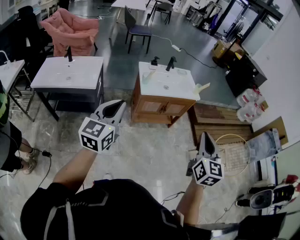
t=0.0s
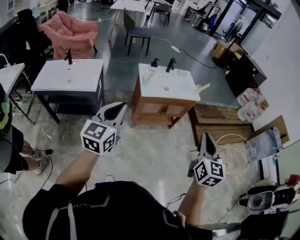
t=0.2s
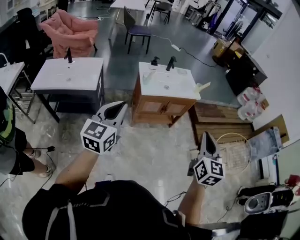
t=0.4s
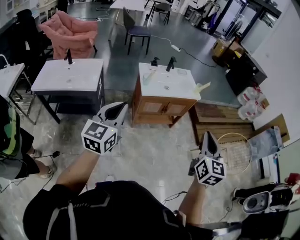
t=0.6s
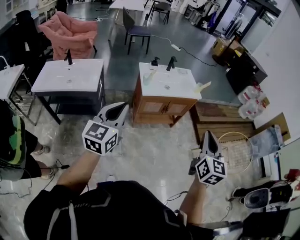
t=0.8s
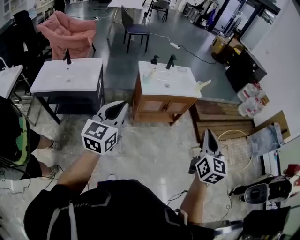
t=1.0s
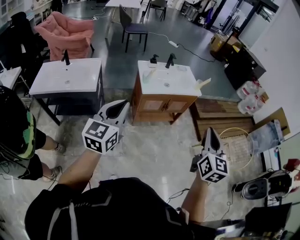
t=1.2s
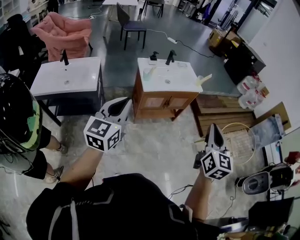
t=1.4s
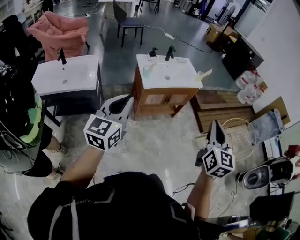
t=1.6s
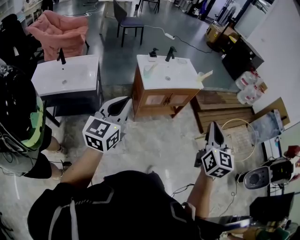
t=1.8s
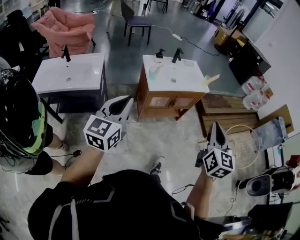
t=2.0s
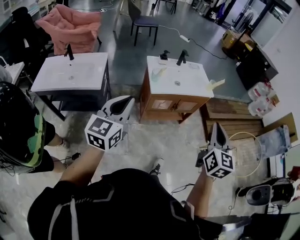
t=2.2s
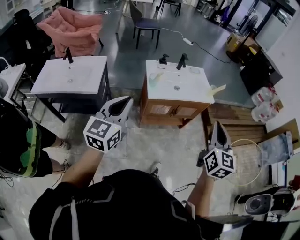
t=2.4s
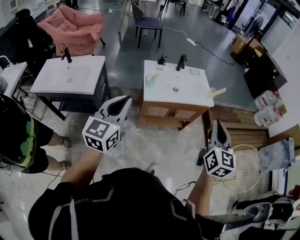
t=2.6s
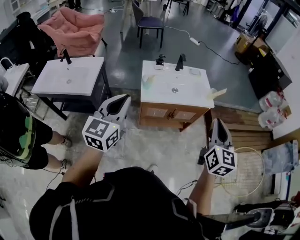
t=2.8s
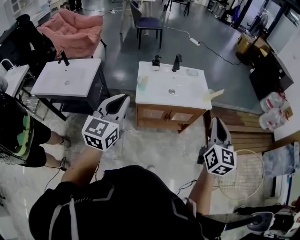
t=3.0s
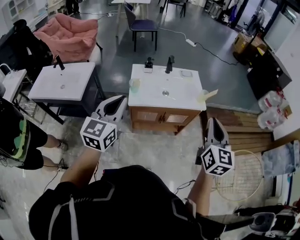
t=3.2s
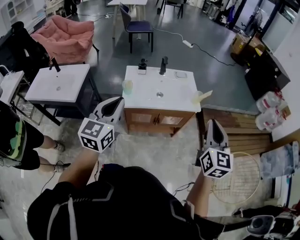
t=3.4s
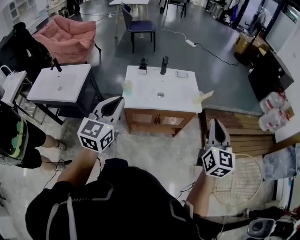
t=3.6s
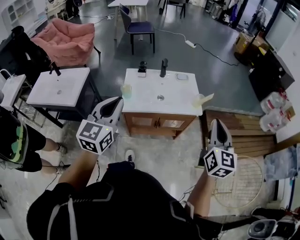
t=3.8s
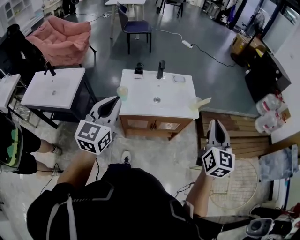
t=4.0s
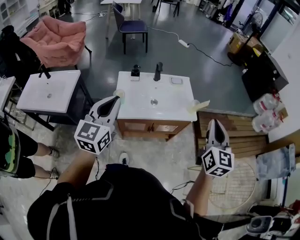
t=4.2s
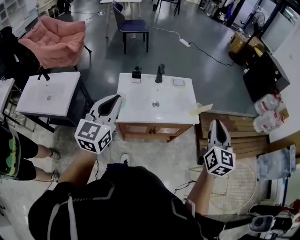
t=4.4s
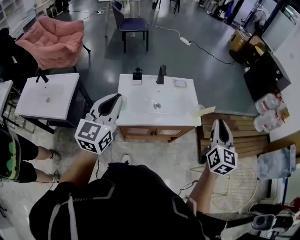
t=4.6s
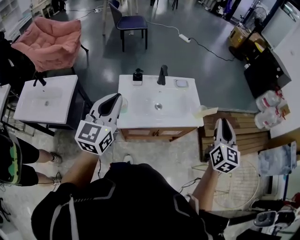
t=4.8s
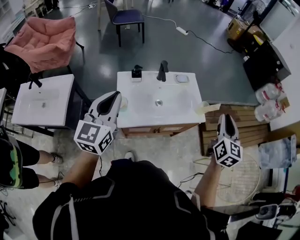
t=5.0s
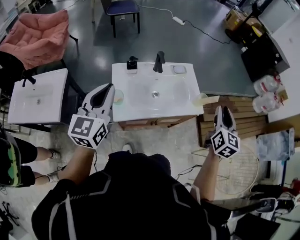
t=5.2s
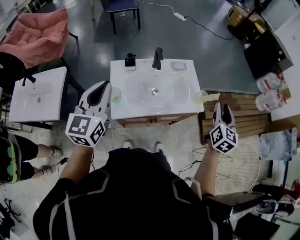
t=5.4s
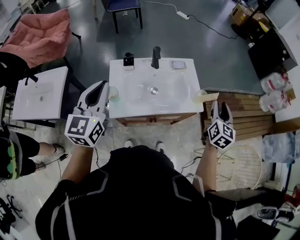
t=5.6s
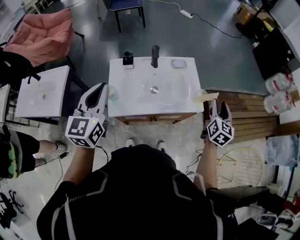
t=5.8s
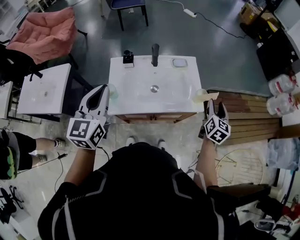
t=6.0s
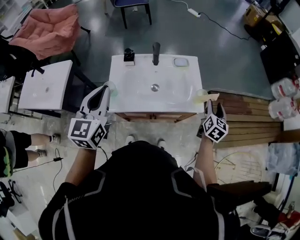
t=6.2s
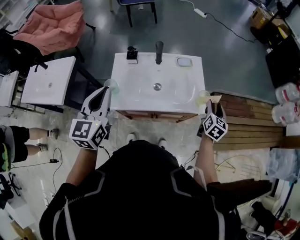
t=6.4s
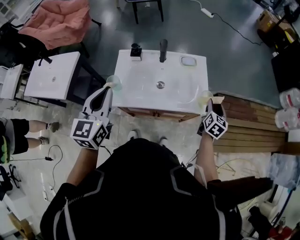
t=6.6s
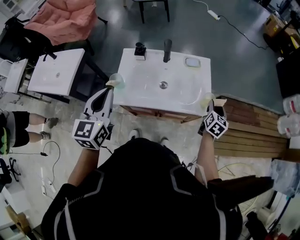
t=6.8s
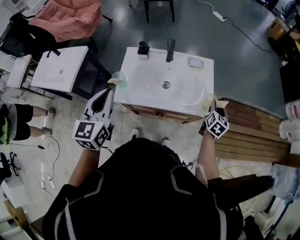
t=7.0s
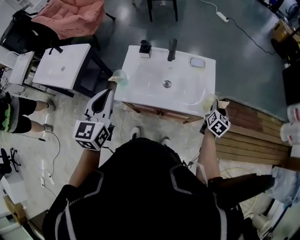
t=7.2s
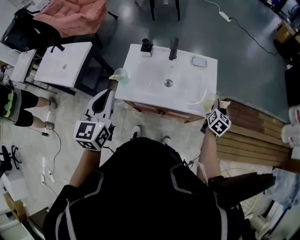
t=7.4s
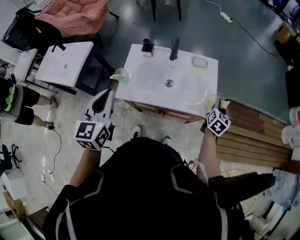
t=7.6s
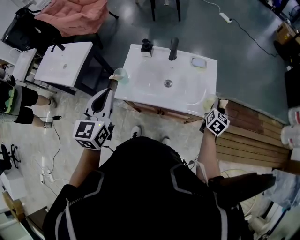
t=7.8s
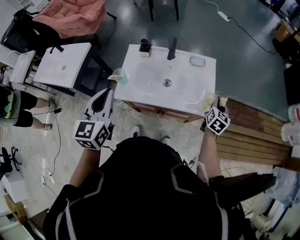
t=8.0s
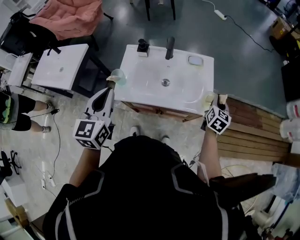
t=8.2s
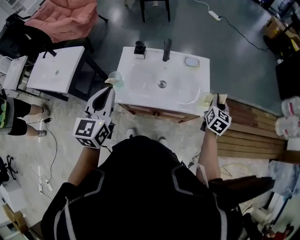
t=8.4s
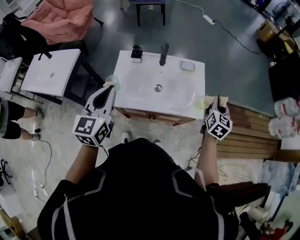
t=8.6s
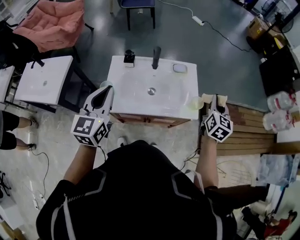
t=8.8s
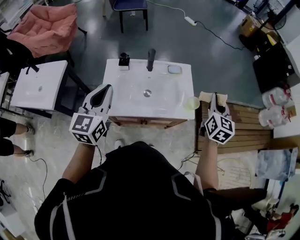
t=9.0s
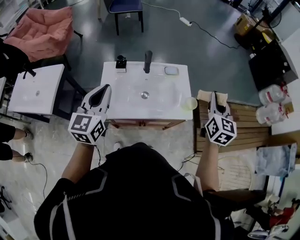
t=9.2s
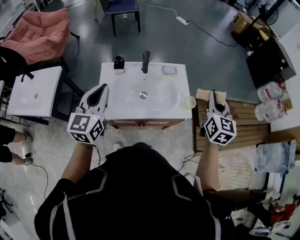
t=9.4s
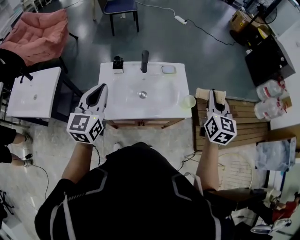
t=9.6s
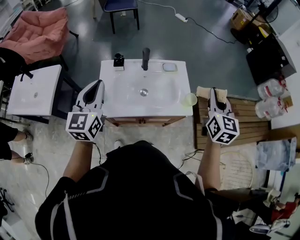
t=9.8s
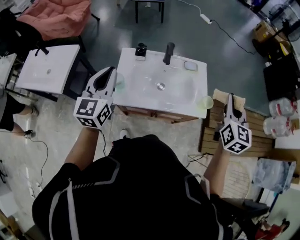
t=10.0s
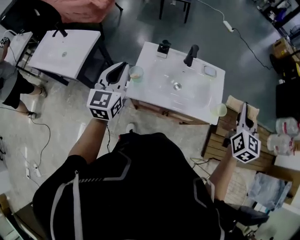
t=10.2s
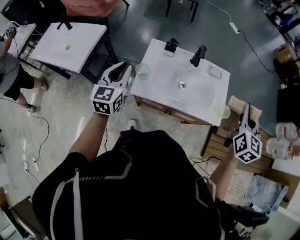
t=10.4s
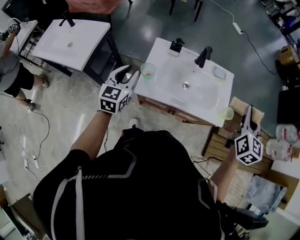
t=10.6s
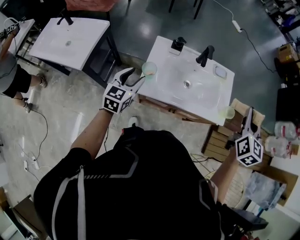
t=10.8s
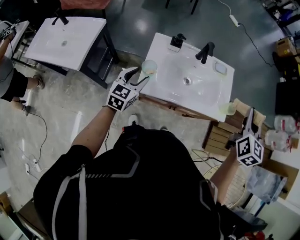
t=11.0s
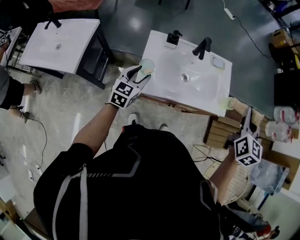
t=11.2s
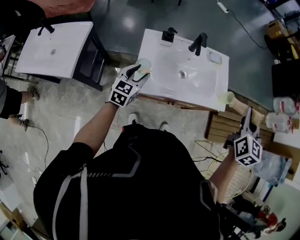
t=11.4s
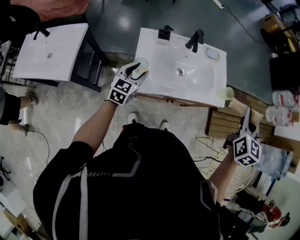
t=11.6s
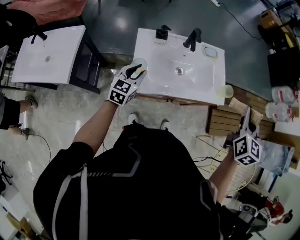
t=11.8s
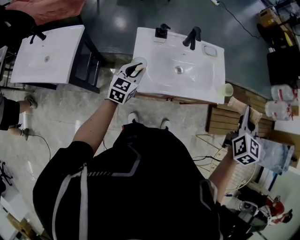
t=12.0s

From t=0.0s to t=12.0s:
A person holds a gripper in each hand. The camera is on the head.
From t=0.0s to t=1.6s: There are only small adjustments of the grippers.
From t=1.6s to t=3.0s: The left gripper goes some 25 cm forward and to the right. Meanwhile the right gripper goes roughly 30 cm forward.
From t=3.0s to t=4.4s: The left gripper is displaced forward by some 15 cm. Meanwhile the right gripper goes about 20 cm forward and to the right.
From t=4.4s to t=6.0s: The left gripper shifts some 10 cm forward. Meanwhile the right gripper moves downward, forward and to the right, about 30 cm, and opens its fingers.
From t=6.0s to t=7.6s: The right gripper travels downward and forward by approximately 15 cm, and closes; the left gripper travels backward by some 5 cm.
From t=7.6s to t=9.0s: The left gripper heads forward, covering about 5 cm; the right gripper goes about 20 cm upward.
From t=9.0s to t=10.4s: The left gripper heads to the left and downward, covering about 15 cm, while the right gripper moves to the left and upward, about 10 cm.
From t=10.4s to t=12.0s: The right gripper goes approximately 10 cm backward; the left gripper heads downward and forward, covering approximately 15 cm, turns by approximately 30 degrees, and opens and closes again.

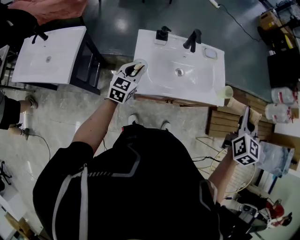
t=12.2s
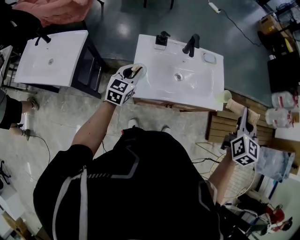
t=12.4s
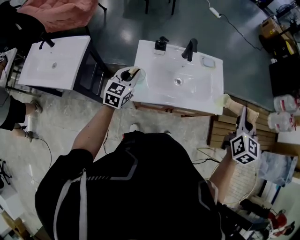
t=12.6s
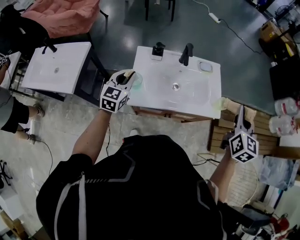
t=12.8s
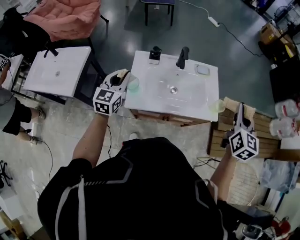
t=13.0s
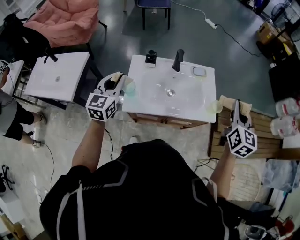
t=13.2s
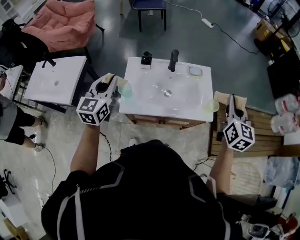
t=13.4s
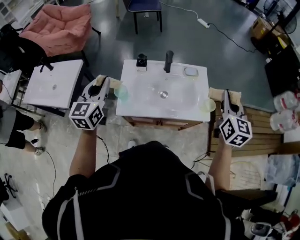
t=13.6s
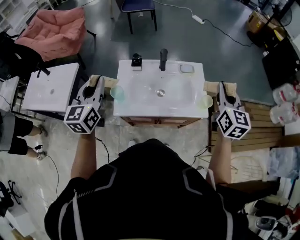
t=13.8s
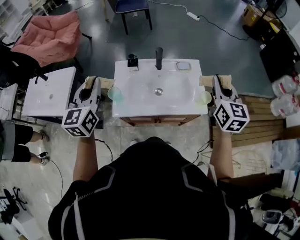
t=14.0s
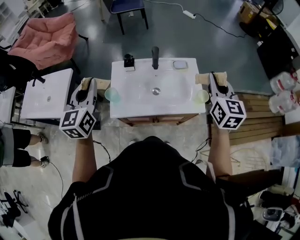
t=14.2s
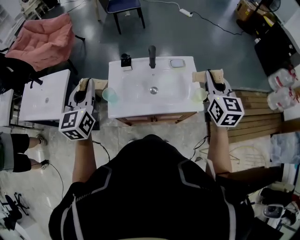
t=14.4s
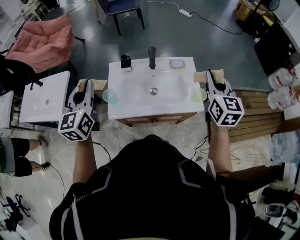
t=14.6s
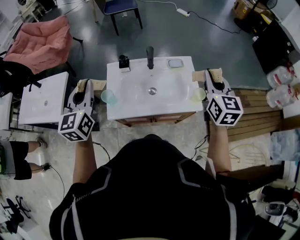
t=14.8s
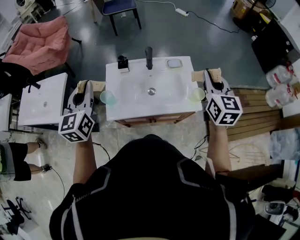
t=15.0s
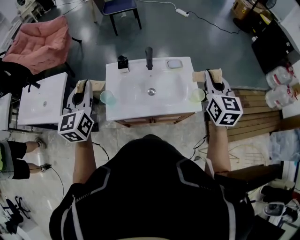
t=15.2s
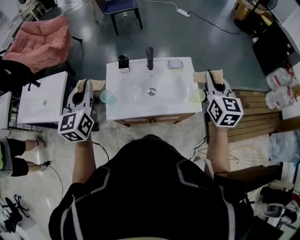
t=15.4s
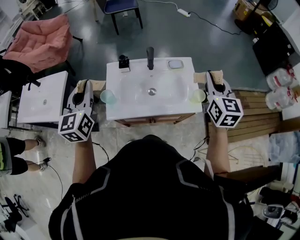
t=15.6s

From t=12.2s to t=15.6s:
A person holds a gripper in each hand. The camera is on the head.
From t=12.2s to t=13.8s: The left gripper is displaced upward by approximately 25 cm, and rotates roughly 20 degrees. Meanwhile the right gripper moves forward, about 10 cm.
From t=13.8s to t=15.6s: There are only small adjustments of the grippers.

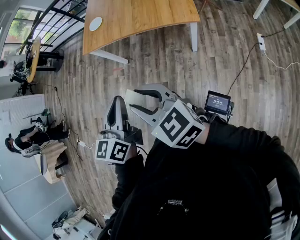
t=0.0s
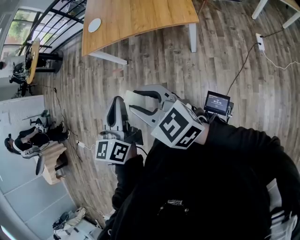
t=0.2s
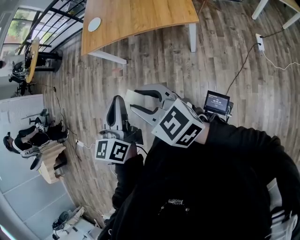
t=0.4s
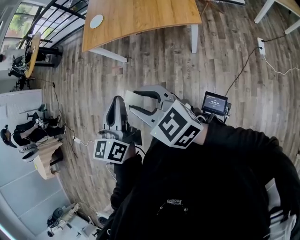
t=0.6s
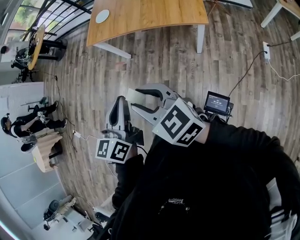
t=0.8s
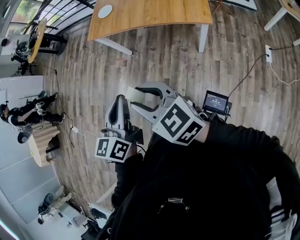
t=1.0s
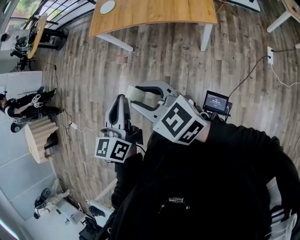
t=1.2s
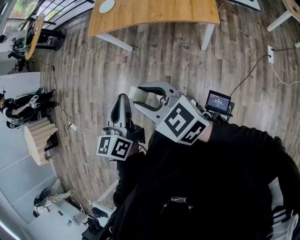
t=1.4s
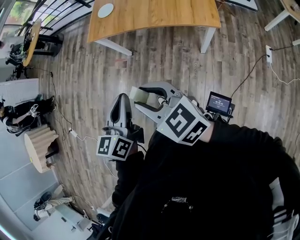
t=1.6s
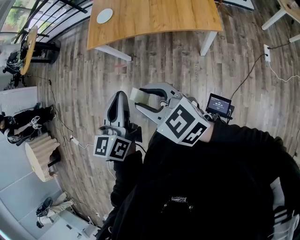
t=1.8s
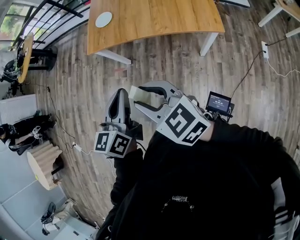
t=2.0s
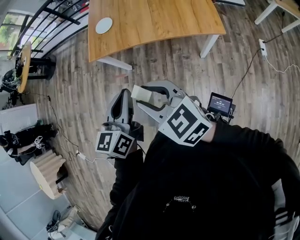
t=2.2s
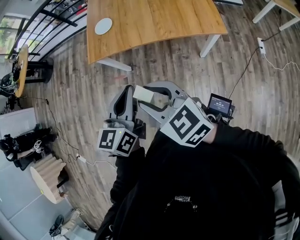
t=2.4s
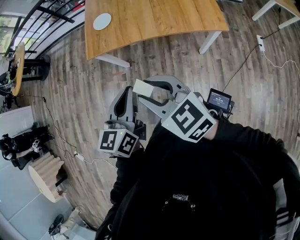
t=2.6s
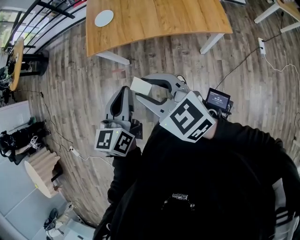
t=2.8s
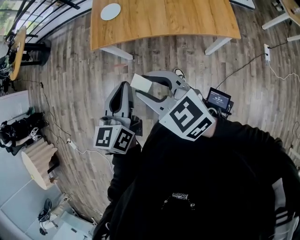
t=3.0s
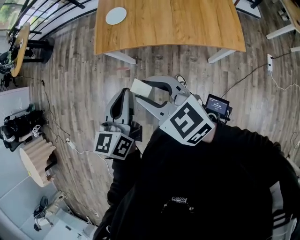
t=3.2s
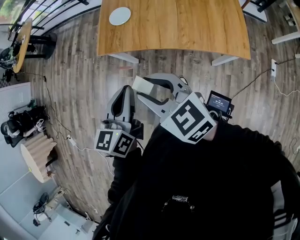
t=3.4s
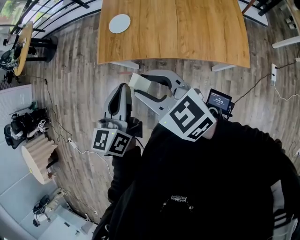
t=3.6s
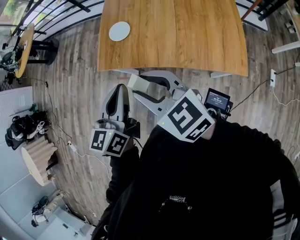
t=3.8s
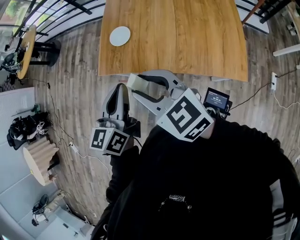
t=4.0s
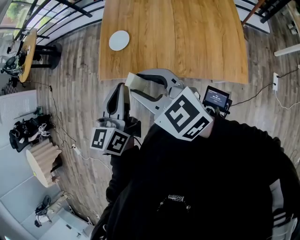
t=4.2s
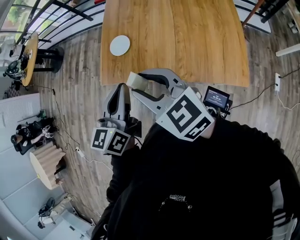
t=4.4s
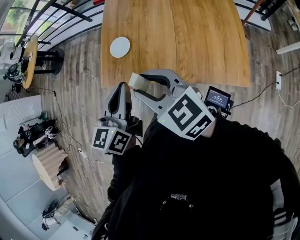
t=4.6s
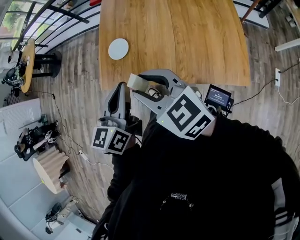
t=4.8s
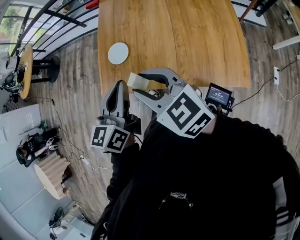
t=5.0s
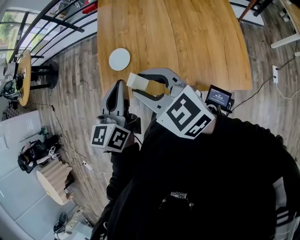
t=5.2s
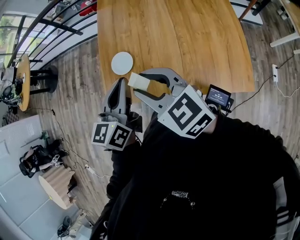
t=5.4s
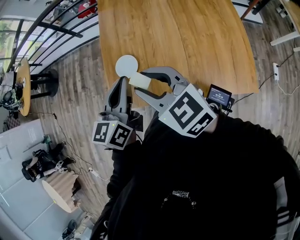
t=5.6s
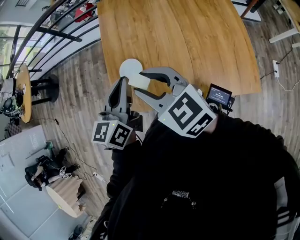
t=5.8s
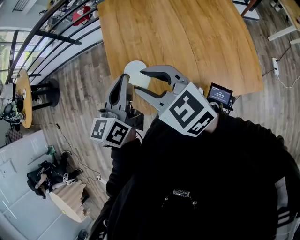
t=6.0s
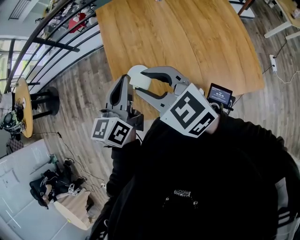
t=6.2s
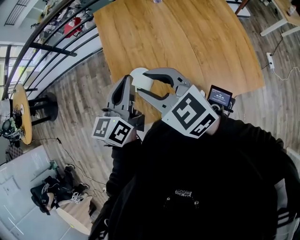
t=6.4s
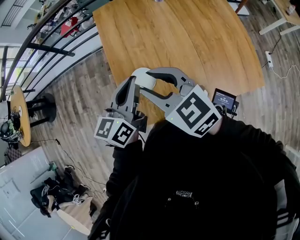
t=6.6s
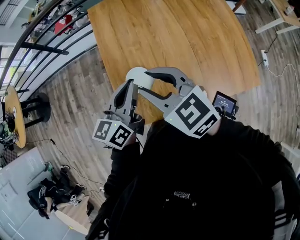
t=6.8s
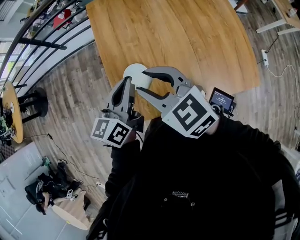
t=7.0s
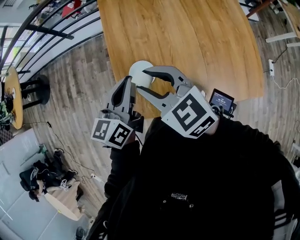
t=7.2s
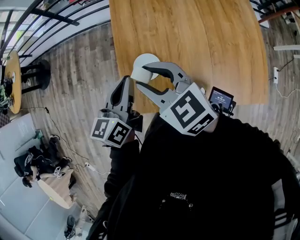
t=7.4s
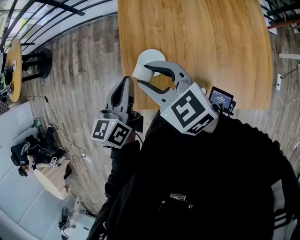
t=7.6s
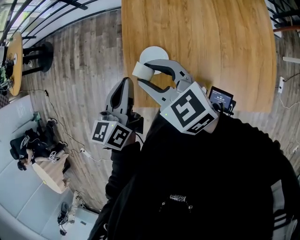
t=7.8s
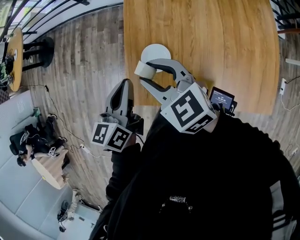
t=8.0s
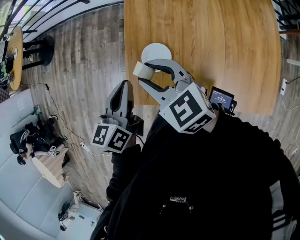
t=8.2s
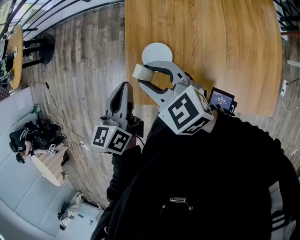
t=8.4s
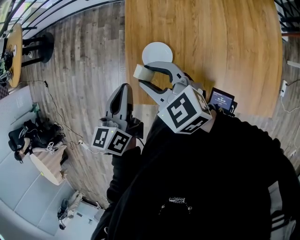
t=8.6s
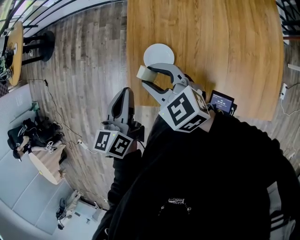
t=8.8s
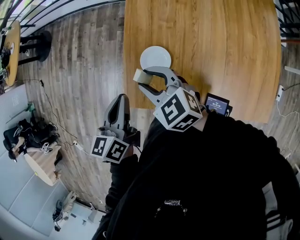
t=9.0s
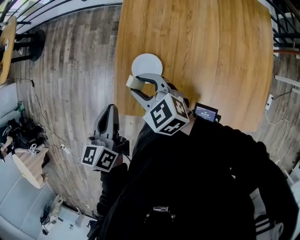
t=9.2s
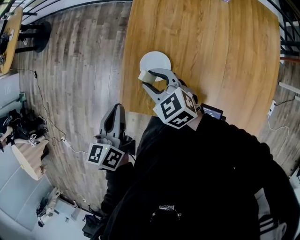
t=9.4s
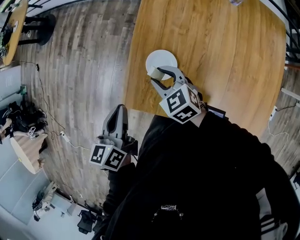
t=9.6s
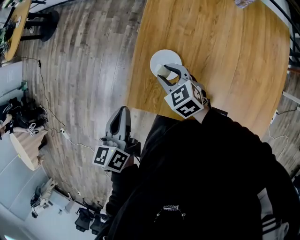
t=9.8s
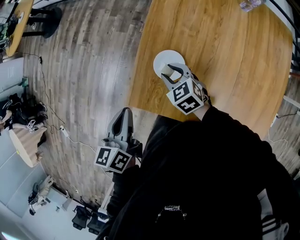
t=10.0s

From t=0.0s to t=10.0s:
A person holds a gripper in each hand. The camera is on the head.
From t=0.0s to t=1.4s: The right gripper moves some 5 cm. Meanwhile the left gripper moves approximately 5 cm.
From t=1.4s to t=2.8s: The two grippers go approximately 25 cm forward and to the left.
From t=2.8s to t=4.2s: Both grippers travel together forward and to the right, roughly 25 cm.
From t=4.2s to t=5.8s: Both grippers travel together forward, approximately 25 cm.
From t=5.8s to t=7.2s: The grippers both shift forward, to the left and downward by about 15 cm.
From t=7.2s to t=8.6s: Both grippers travel together to the left, approximately 10 cm. The left gripper turns by approximately 20 degrees.
From t=8.6s to t=10.0s: The left gripper heads to the left, covering approximately 10 cm. Meanwhile the right gripper heads downward, covering about 20 cm.
